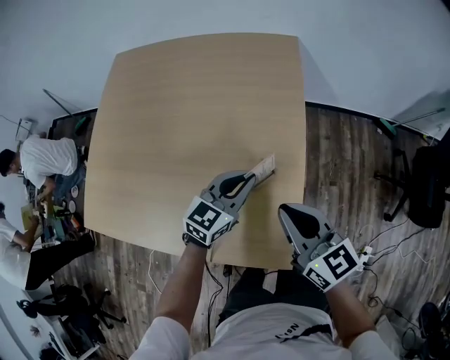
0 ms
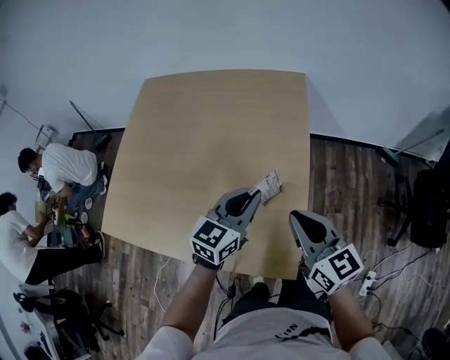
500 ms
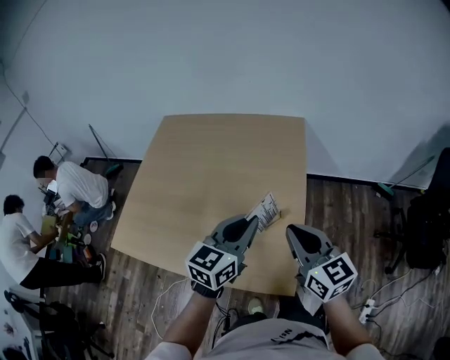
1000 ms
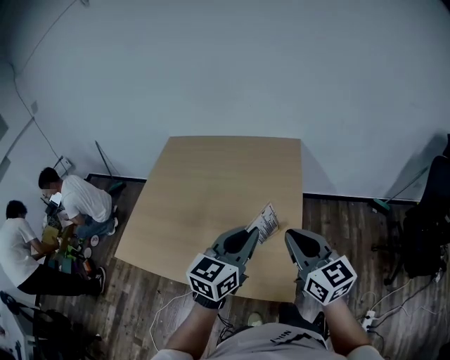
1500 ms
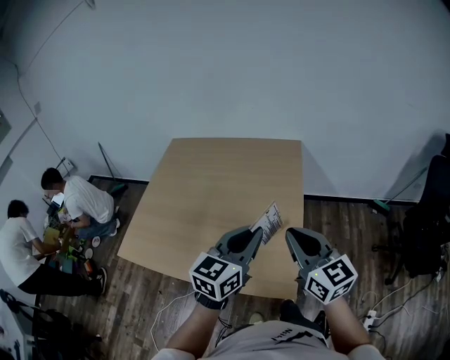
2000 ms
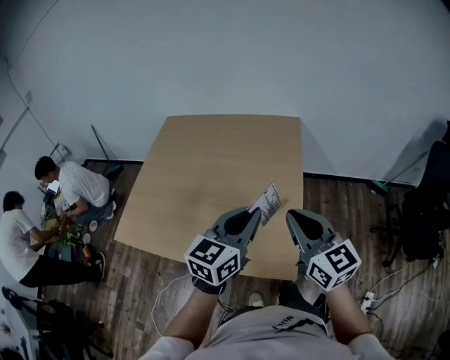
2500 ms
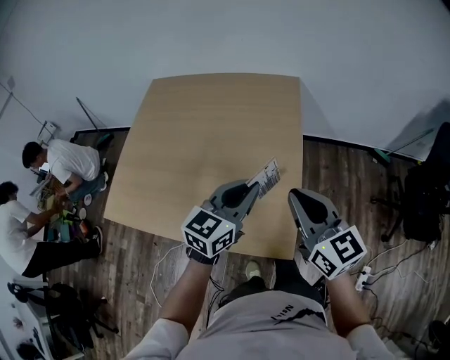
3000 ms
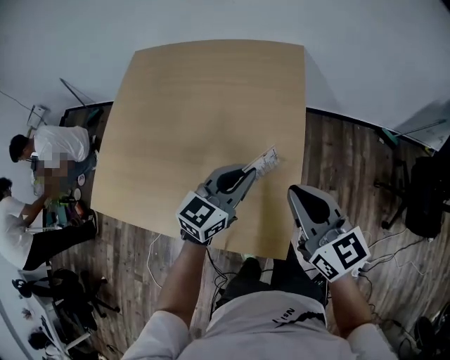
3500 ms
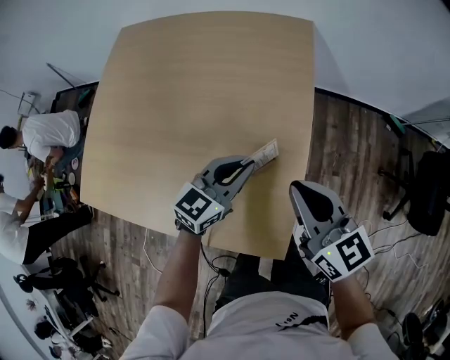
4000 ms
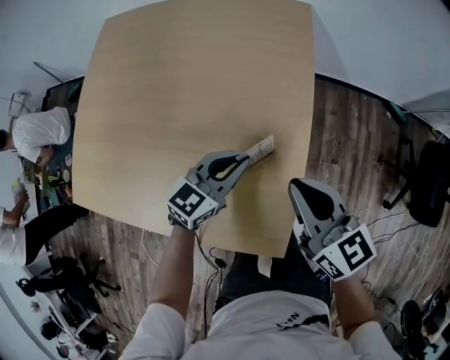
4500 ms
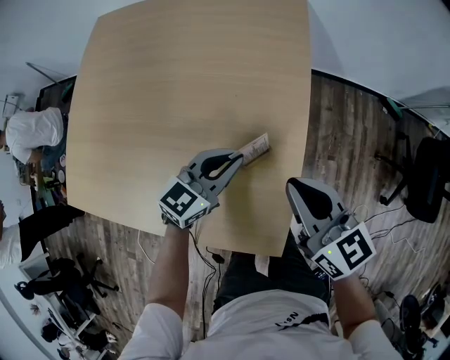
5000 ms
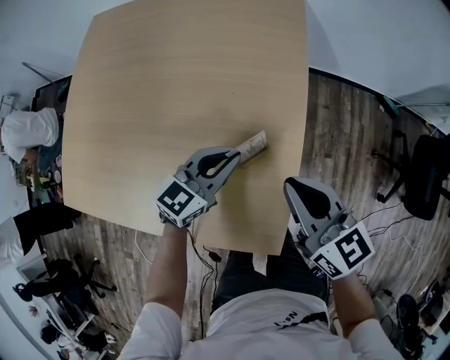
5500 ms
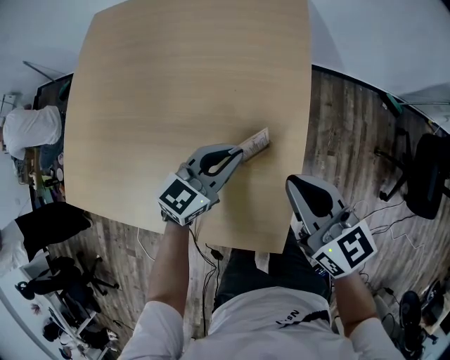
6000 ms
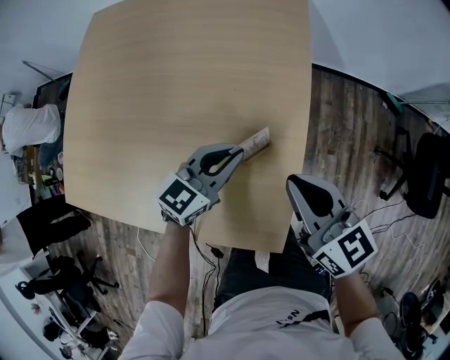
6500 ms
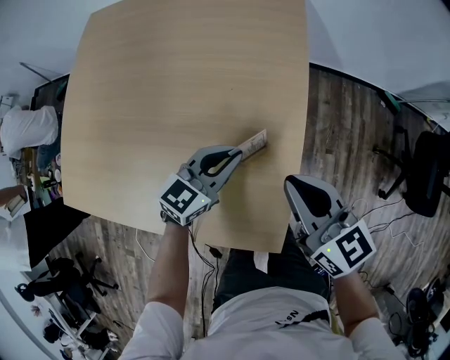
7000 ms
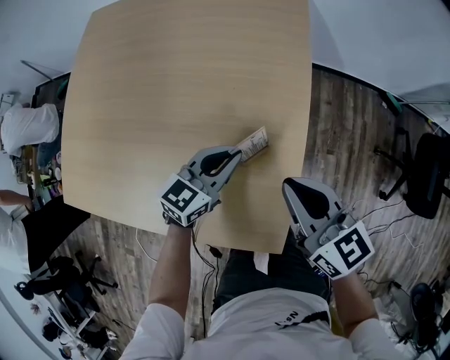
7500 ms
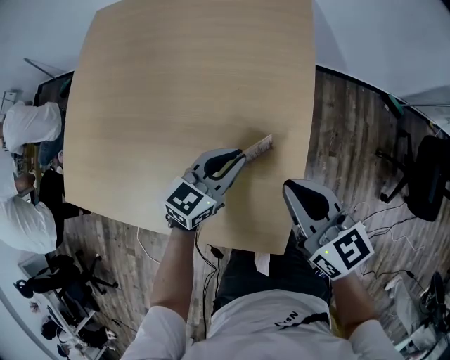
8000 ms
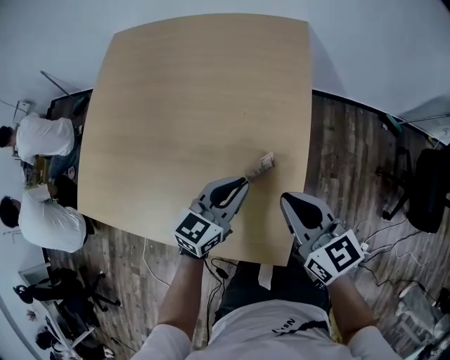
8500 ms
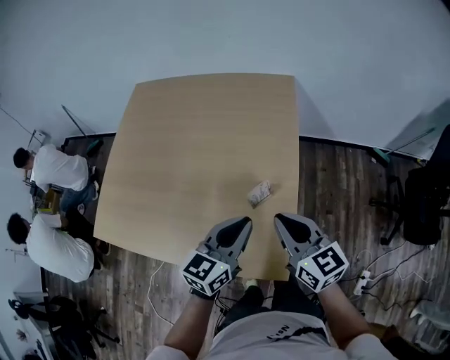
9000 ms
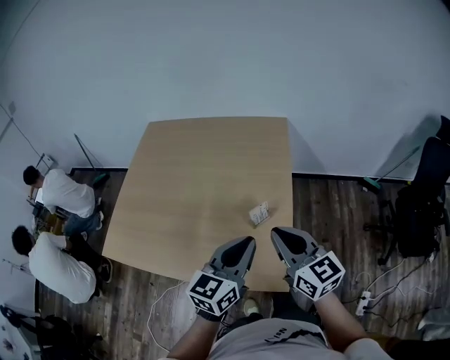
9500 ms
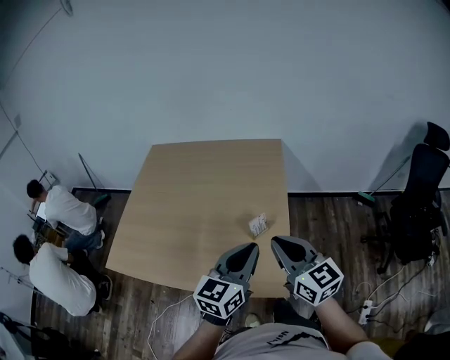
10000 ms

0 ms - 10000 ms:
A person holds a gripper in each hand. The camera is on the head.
0 ms - 2000 ms: Both grippers travel together upward and backward, approximately 25 cm.
2000 ms - 4000 ms: Both grippers travel together downward and forward, about 25 cm.
4000 ms - 6000 ms: The grippers move only a little.
6000 ms - 8000 ms: The grippers make only small movements.
8000 ms - 10000 ms: The two grippers go approximately 30 cm upward and backward.

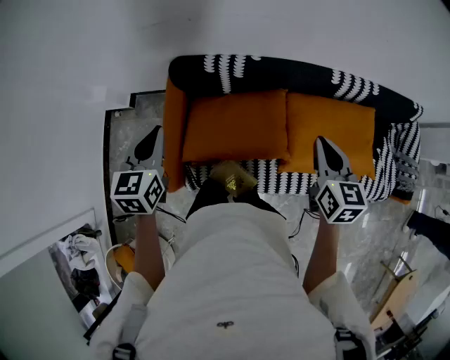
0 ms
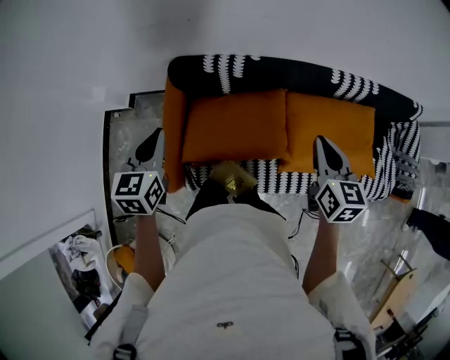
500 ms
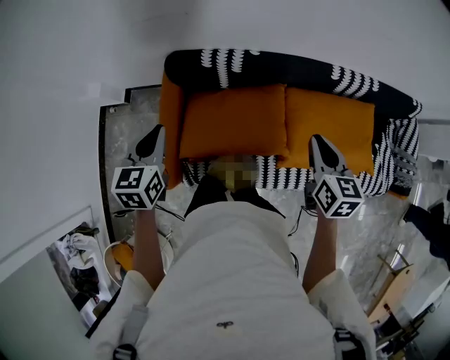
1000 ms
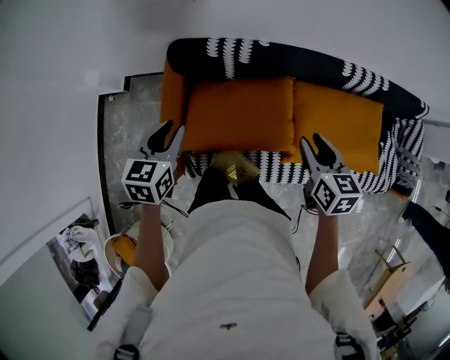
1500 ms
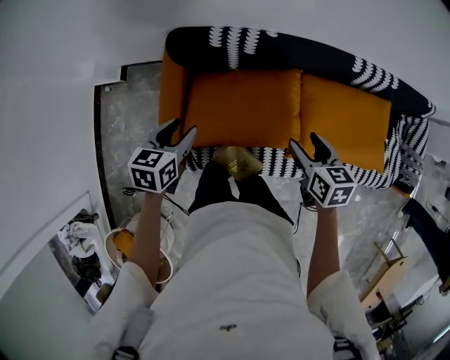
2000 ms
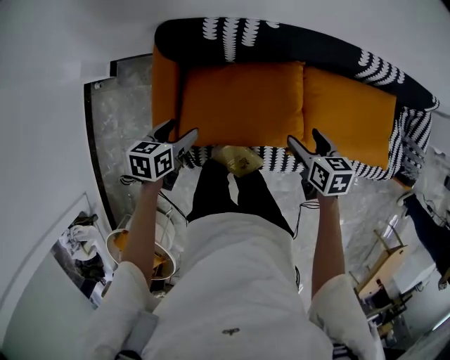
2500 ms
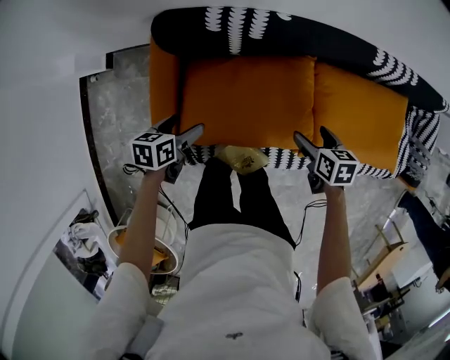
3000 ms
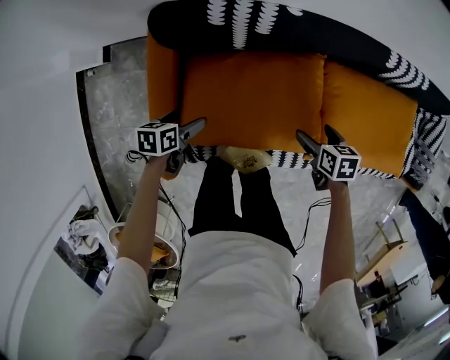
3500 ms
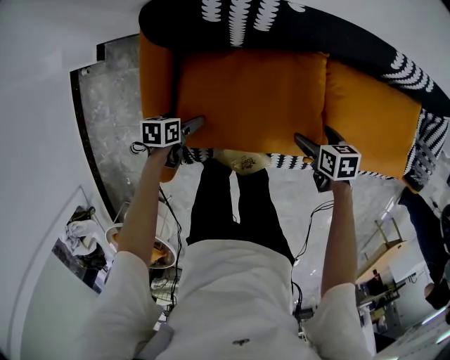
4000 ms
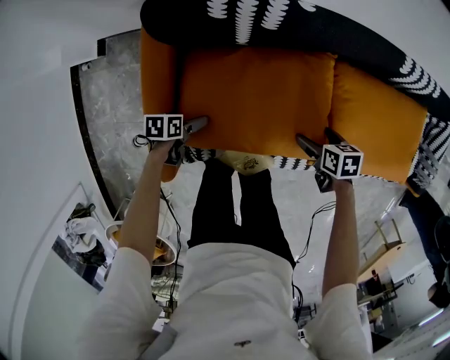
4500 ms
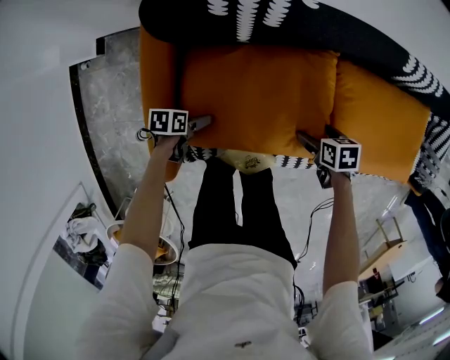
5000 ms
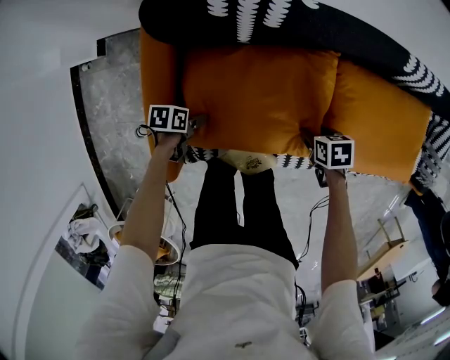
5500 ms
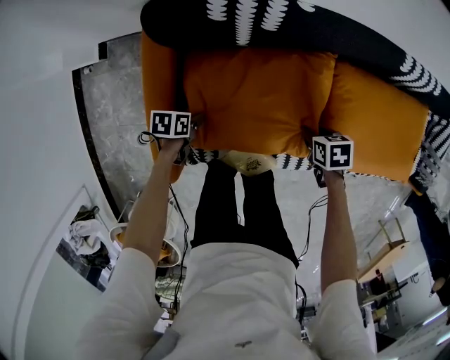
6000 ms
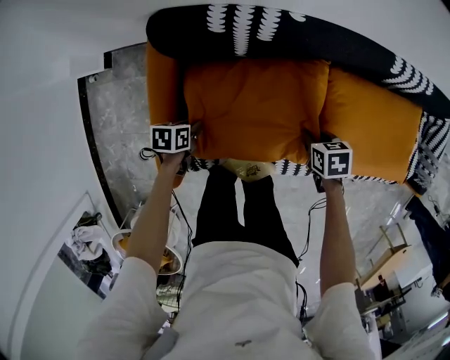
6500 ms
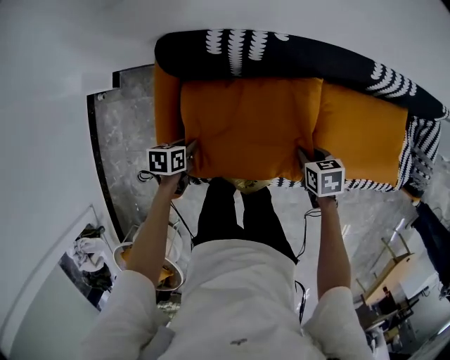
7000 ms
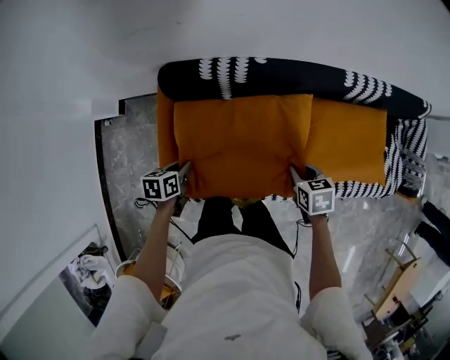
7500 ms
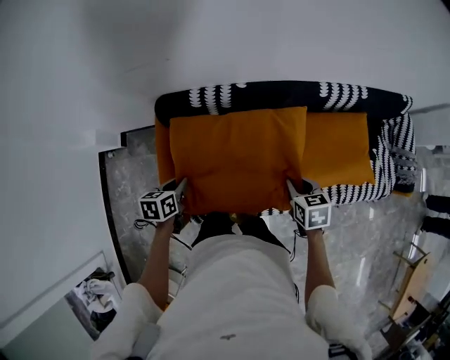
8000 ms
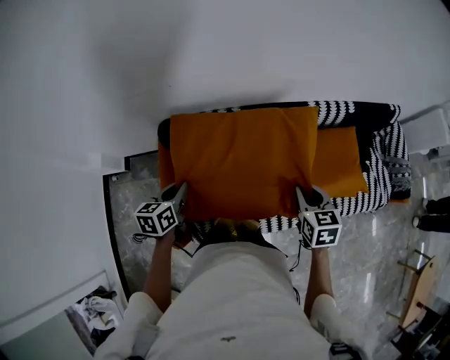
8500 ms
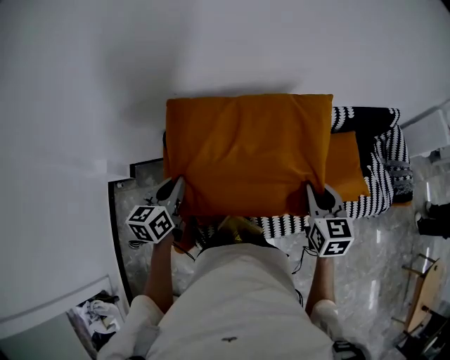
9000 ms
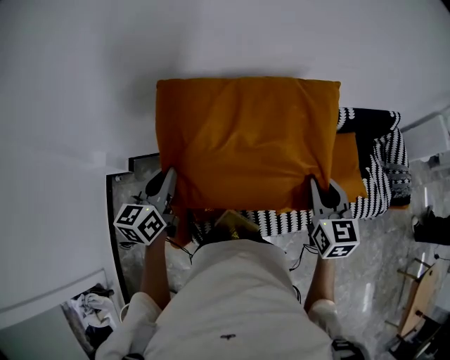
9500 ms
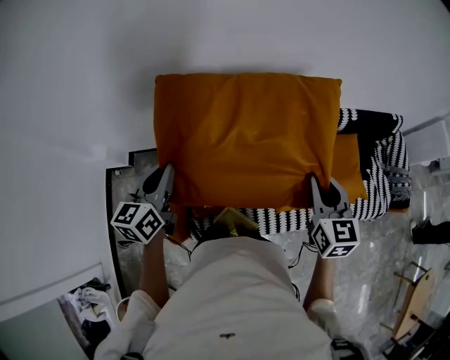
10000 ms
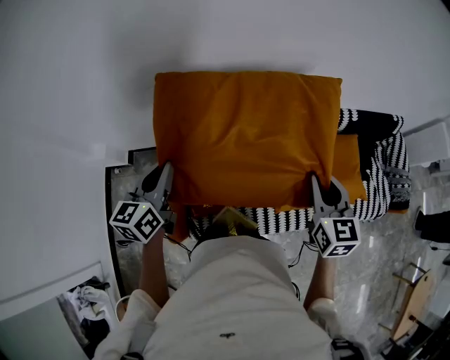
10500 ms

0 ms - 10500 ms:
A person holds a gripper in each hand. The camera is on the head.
0 ms - 2000 ms: The left gripper is displaced downward by about 15 cm, swivels about 30 degrees, and opens its fingers; the right gripper shifts approximately 15 cm downward and to the left, swivels roughly 20 degrees, and opens its fingers.
2000 ms - 4000 ms: Both grippers move downward, approximately 25 cm. The right gripper swivels roughly 30 degrees, and opens its fingers, while the left gripper rotates approximately 30 degrees, and opens.
4000 ms - 6500 ms: The right gripper closes up. Meanwhile the left gripper closes its fingers.
6500 ms - 8500 ms: Both grippers travel together upward, approximately 35 cm. The right gripper points its fingers approximately 30 degrees further upward. The left gripper changes its angle by some 40 degrees.
8500 ms - 10500 ms: Both grippers travel together upward, roughly 15 cm. The left gripper changes its angle by about 20 degrees.

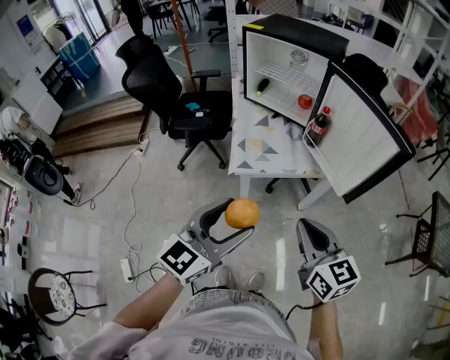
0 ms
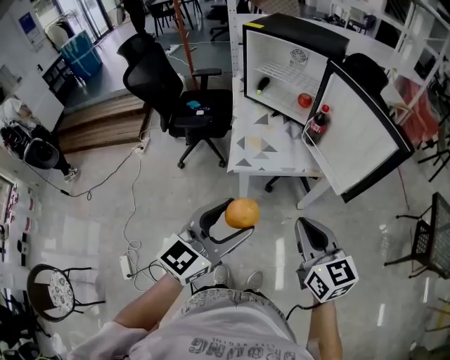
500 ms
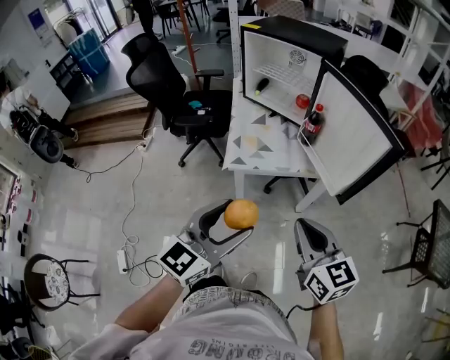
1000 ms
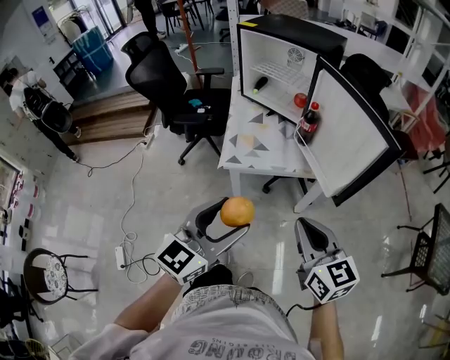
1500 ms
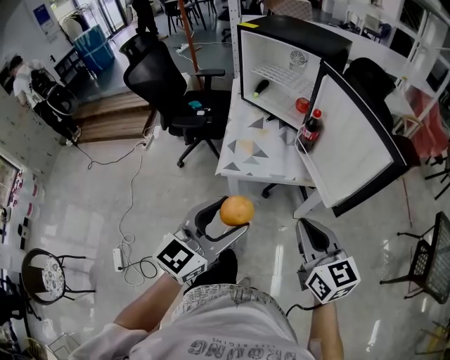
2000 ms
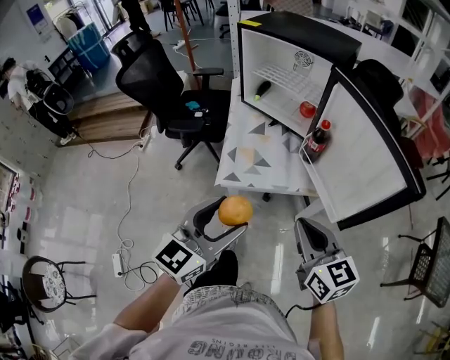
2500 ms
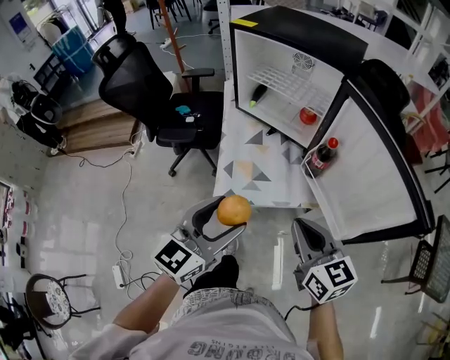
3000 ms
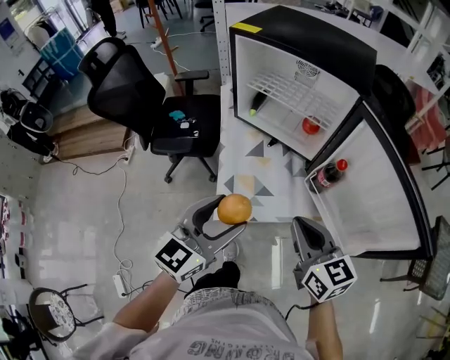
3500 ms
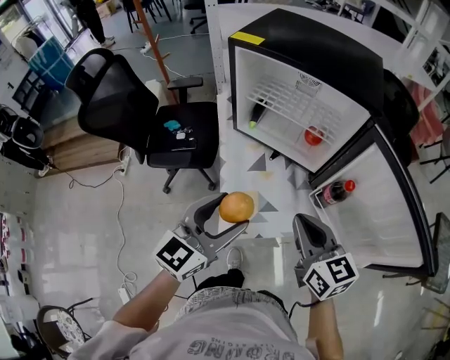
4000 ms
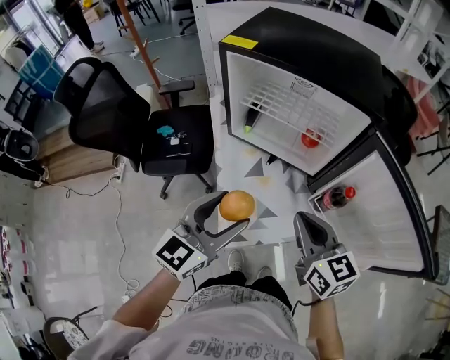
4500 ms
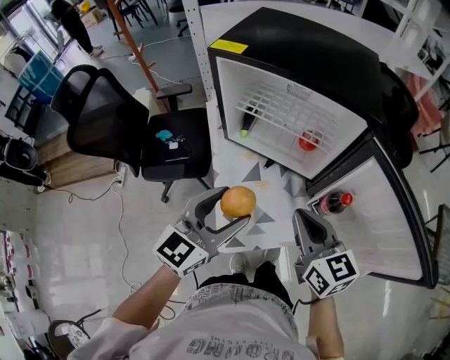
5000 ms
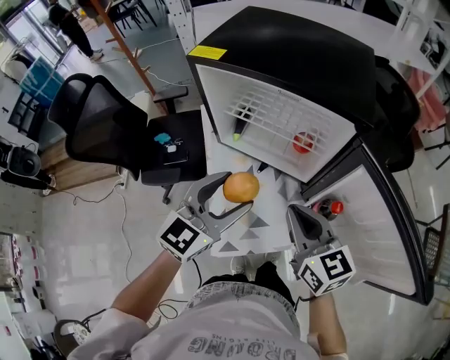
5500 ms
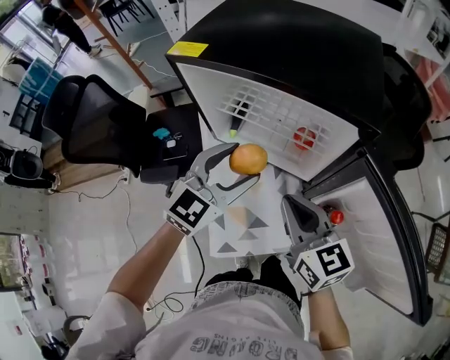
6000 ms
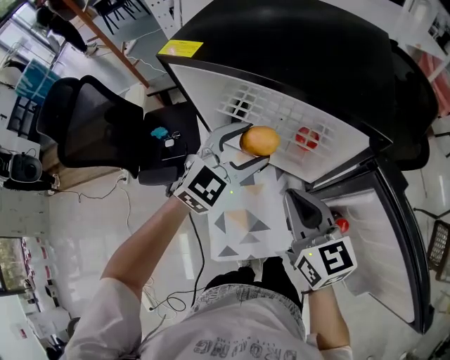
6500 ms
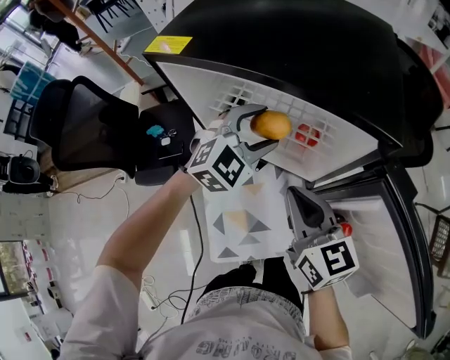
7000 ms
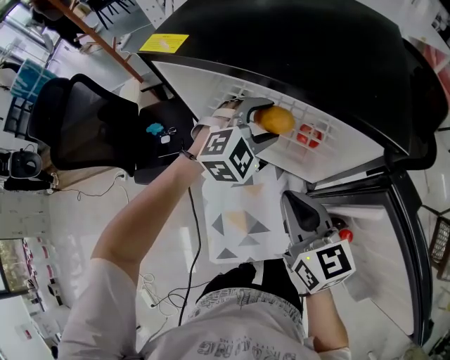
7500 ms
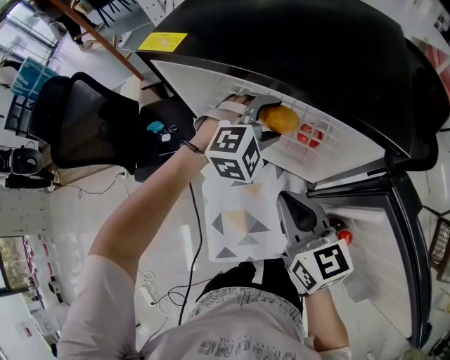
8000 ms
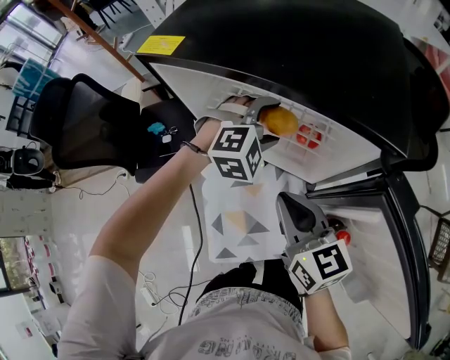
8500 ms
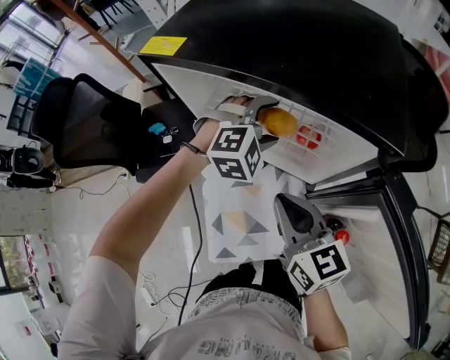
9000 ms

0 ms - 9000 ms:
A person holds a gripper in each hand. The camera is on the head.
0 ms - 2000 ms: The grippers both shift to the right by about 10 cm.
2000 ms - 4500 ms: The left gripper goes some 35 cm forward; the right gripper travels forward and to the left by about 35 cm.
4500 ms - 7000 ms: The right gripper is displaced forward by some 15 cm. Meanwhile the left gripper moves forward, some 30 cm, and changes its angle by approximately 50 degrees.
7000 ms - 9000 ms: The left gripper turns by about 20 degrees.
